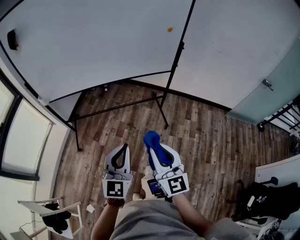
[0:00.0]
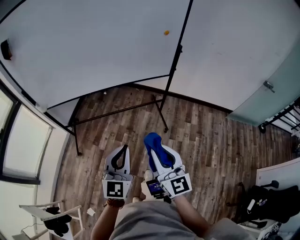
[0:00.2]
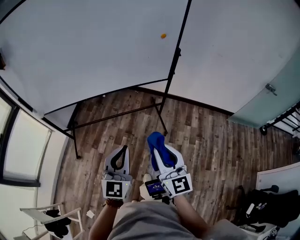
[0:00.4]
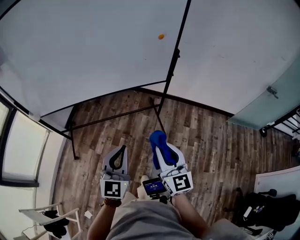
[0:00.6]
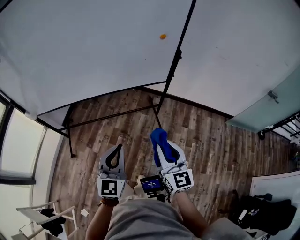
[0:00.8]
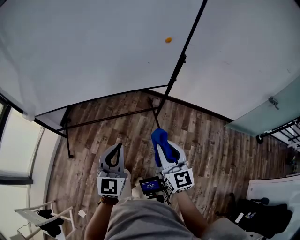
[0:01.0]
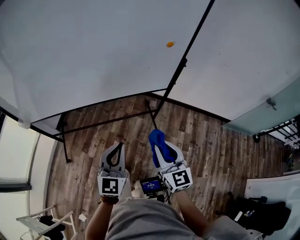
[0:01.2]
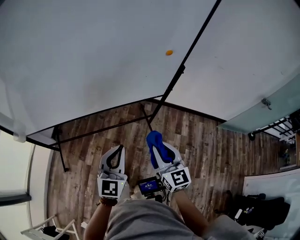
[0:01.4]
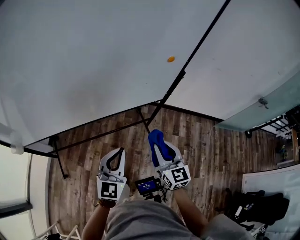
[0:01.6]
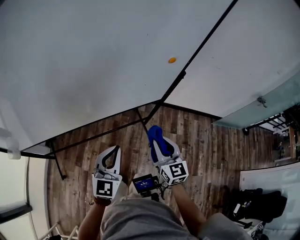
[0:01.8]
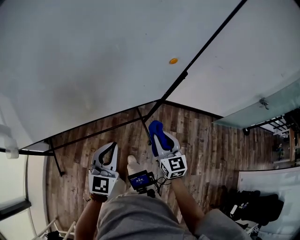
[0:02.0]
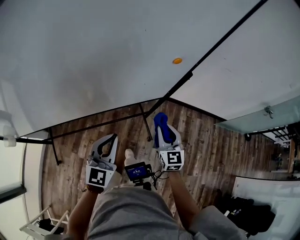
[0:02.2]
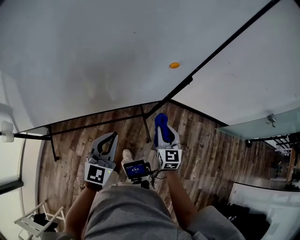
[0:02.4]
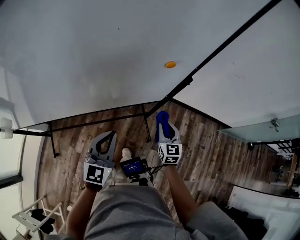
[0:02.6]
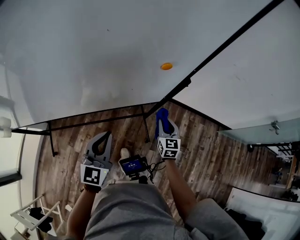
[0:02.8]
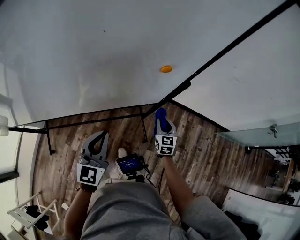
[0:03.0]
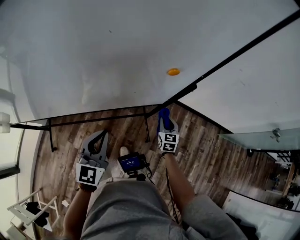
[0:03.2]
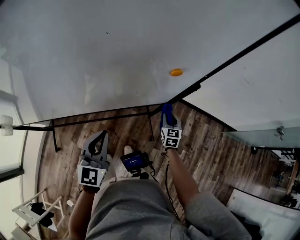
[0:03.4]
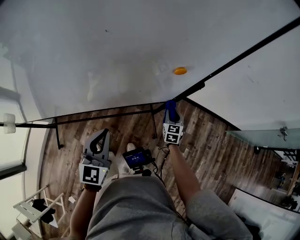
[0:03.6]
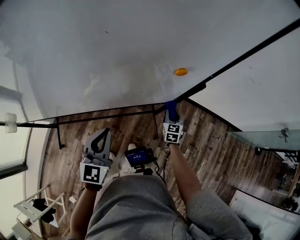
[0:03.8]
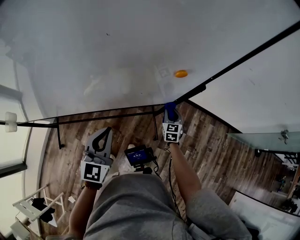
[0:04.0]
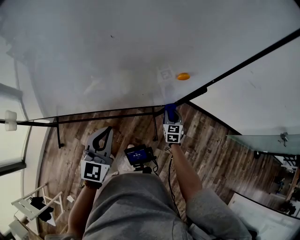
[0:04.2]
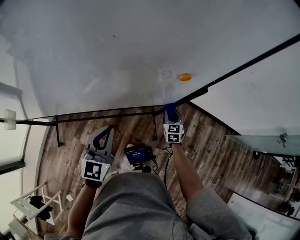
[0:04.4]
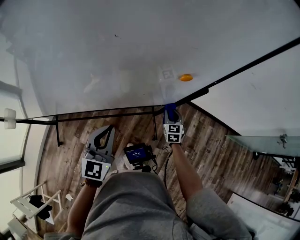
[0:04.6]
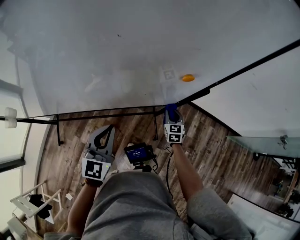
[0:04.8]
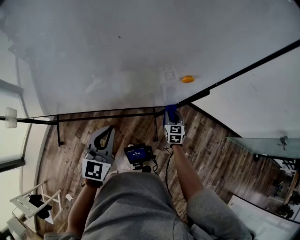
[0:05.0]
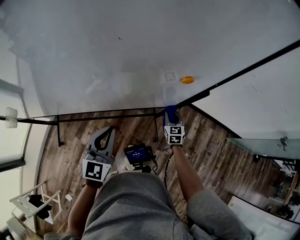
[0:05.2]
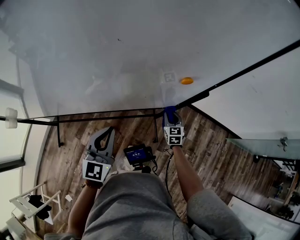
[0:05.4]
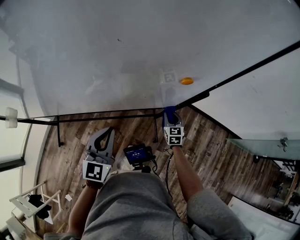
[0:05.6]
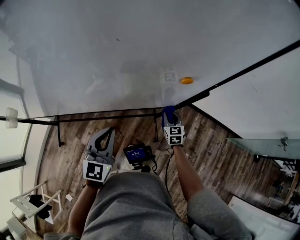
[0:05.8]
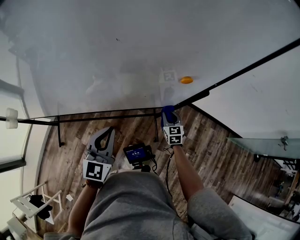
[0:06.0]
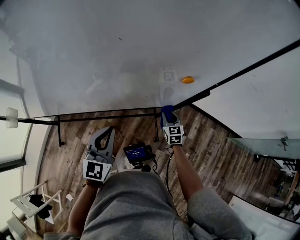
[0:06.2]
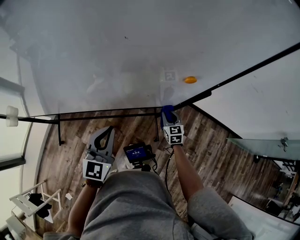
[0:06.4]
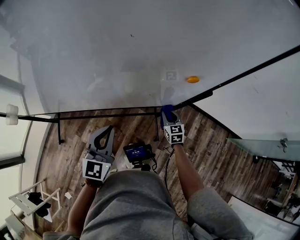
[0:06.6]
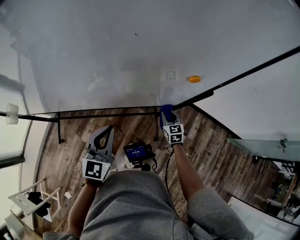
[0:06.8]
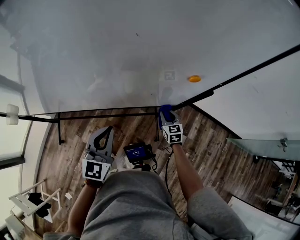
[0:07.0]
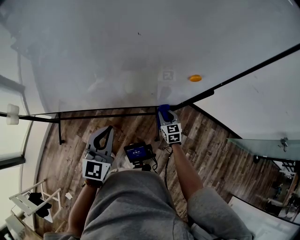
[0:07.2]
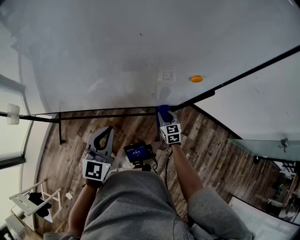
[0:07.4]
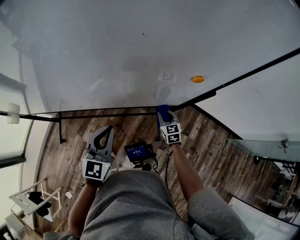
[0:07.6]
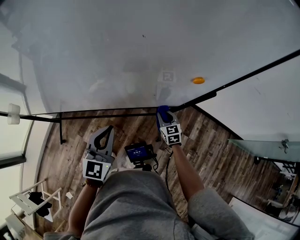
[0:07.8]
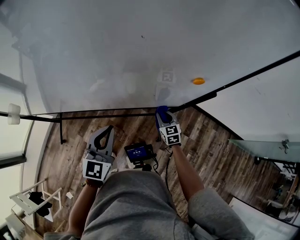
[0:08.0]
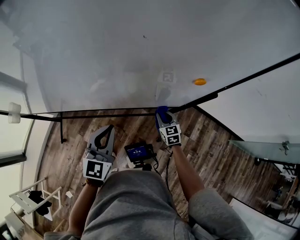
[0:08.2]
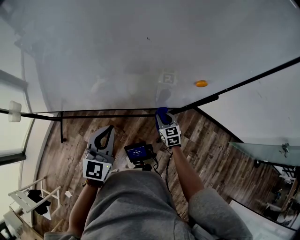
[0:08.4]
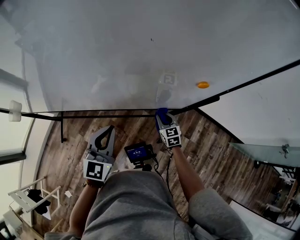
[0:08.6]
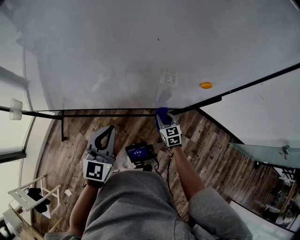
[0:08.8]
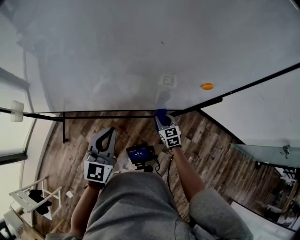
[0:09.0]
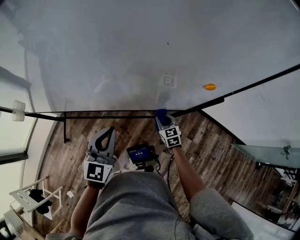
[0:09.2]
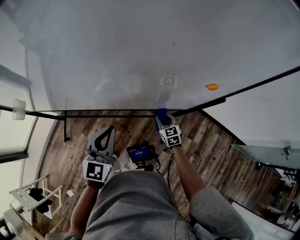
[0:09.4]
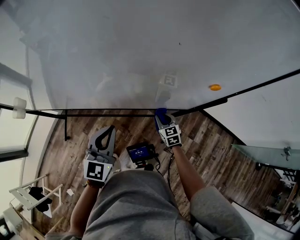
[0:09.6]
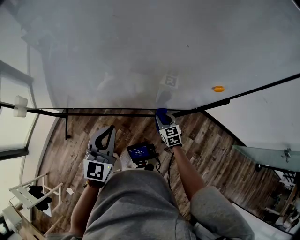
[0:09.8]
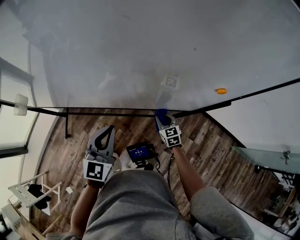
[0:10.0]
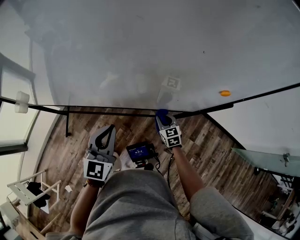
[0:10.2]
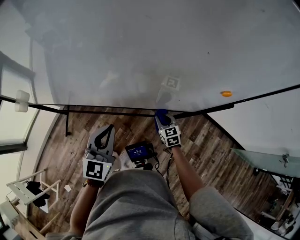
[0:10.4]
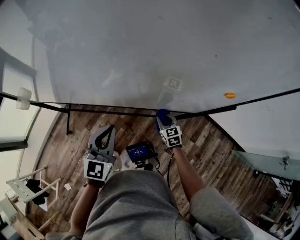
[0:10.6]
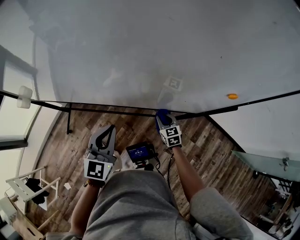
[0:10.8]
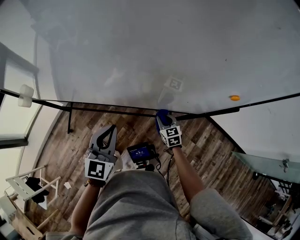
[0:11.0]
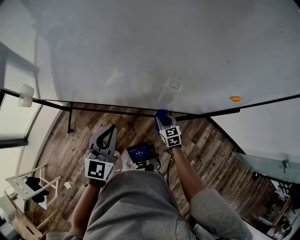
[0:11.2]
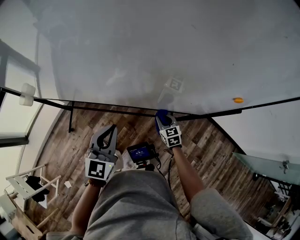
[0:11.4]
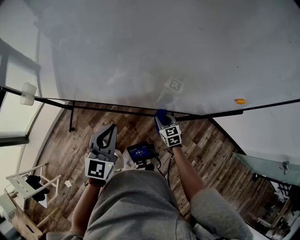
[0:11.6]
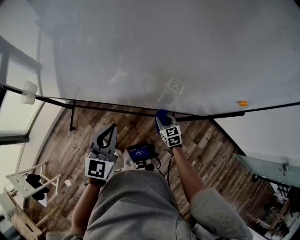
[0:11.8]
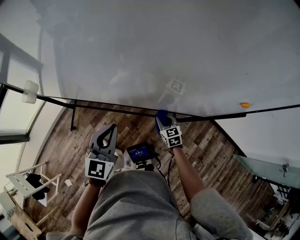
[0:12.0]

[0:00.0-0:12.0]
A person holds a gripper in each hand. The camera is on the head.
0:00.0 to 0:01.6: The grippers both shift forward by about 35 cm.
0:01.6 to 0:03.0: The right gripper goes some 40 cm forward, downward and to the right; the left gripper travels forward by roughly 15 cm.
0:03.0 to 0:04.4: The right gripper moves forward and downward, approximately 10 cm.
0:04.4 to 0:06.0: The grippers make only small movements.
0:06.0 to 0:07.6: The right gripper goes approximately 5 cm to the left.
0:07.6 to 0:09.0: The grippers stay close to where they were, moving slightly.
0:09.0 to 0:10.4: The grippers both shift to the left by roughly 5 cm.
0:10.4 to 0:12.0: Both grippers move to the left, roughly 5 cm.

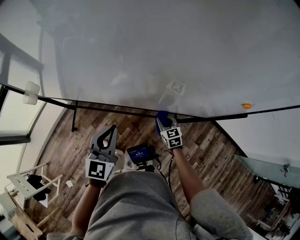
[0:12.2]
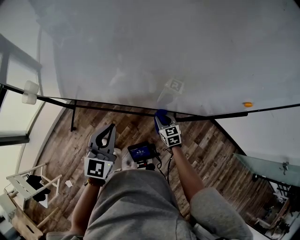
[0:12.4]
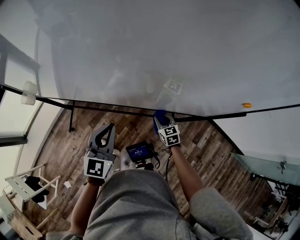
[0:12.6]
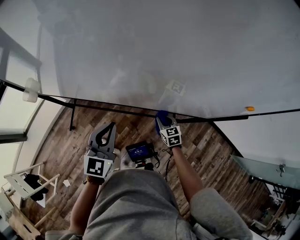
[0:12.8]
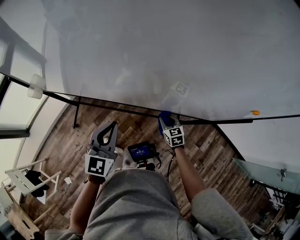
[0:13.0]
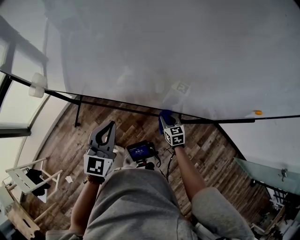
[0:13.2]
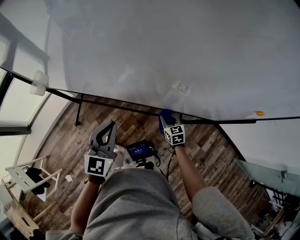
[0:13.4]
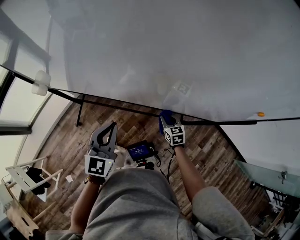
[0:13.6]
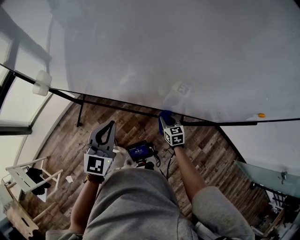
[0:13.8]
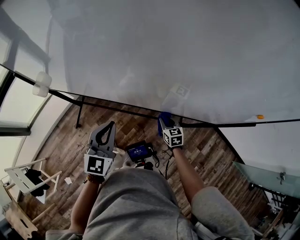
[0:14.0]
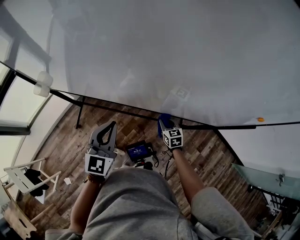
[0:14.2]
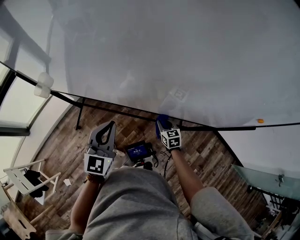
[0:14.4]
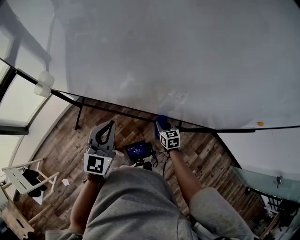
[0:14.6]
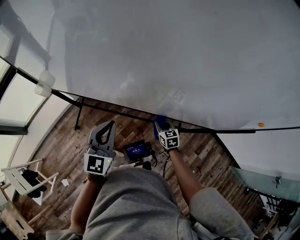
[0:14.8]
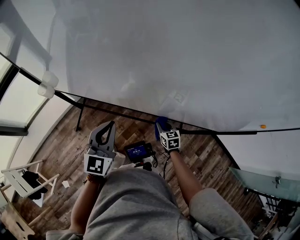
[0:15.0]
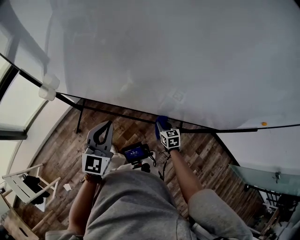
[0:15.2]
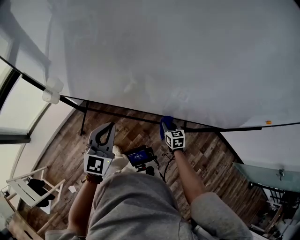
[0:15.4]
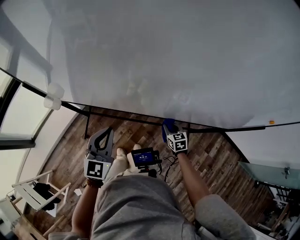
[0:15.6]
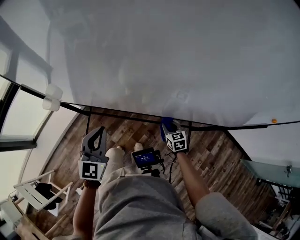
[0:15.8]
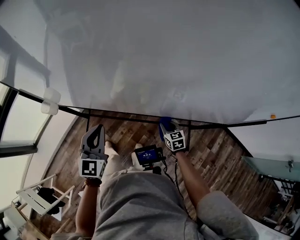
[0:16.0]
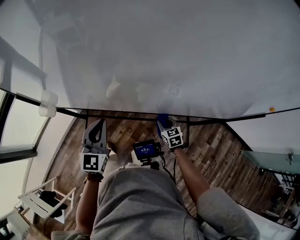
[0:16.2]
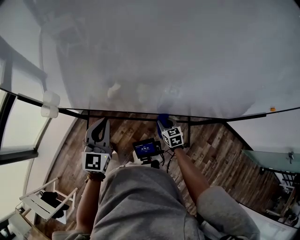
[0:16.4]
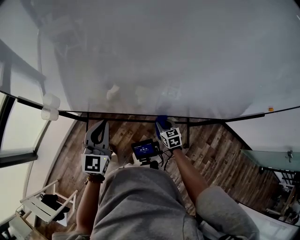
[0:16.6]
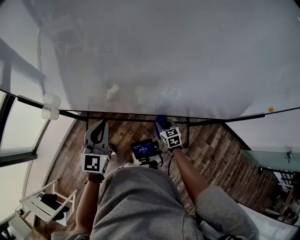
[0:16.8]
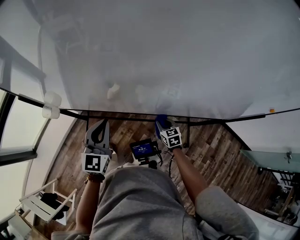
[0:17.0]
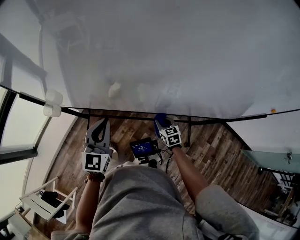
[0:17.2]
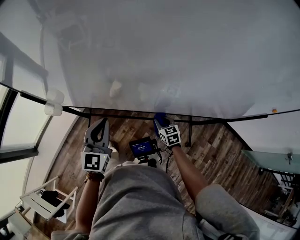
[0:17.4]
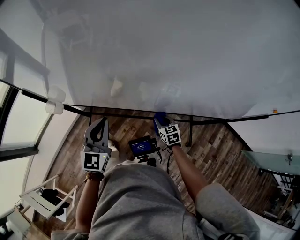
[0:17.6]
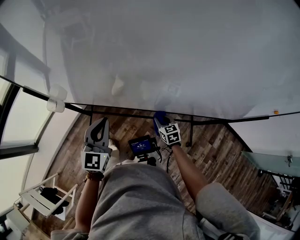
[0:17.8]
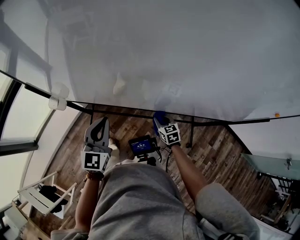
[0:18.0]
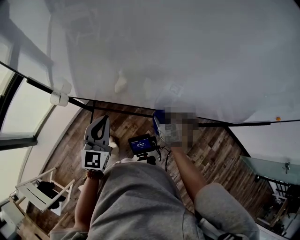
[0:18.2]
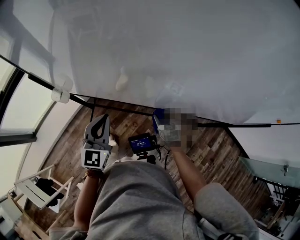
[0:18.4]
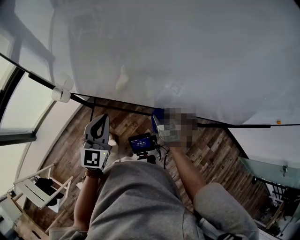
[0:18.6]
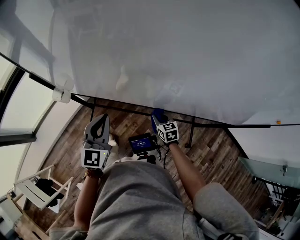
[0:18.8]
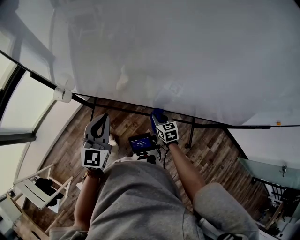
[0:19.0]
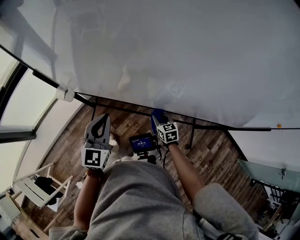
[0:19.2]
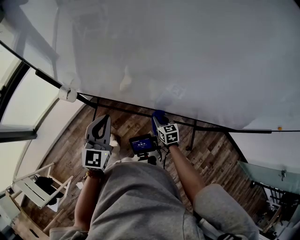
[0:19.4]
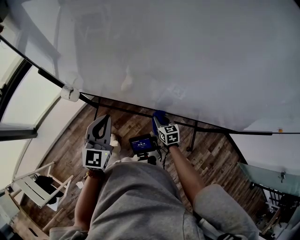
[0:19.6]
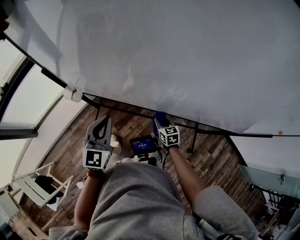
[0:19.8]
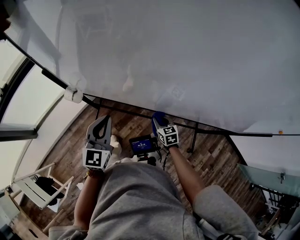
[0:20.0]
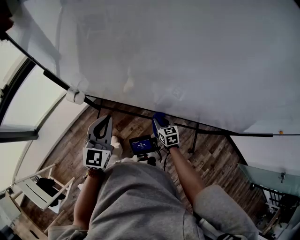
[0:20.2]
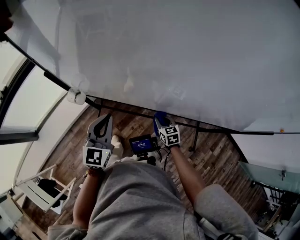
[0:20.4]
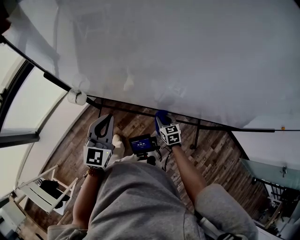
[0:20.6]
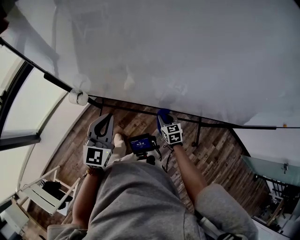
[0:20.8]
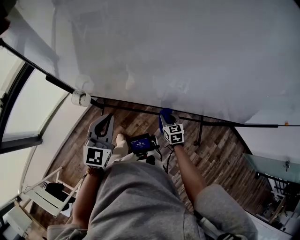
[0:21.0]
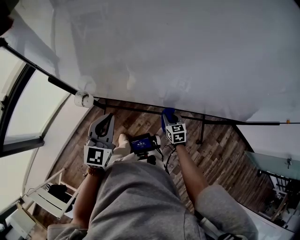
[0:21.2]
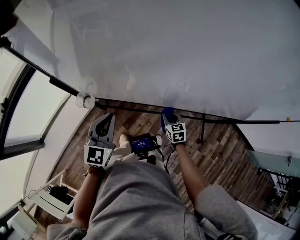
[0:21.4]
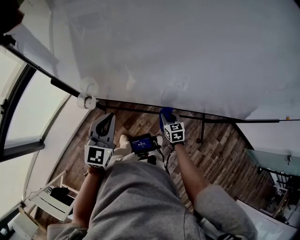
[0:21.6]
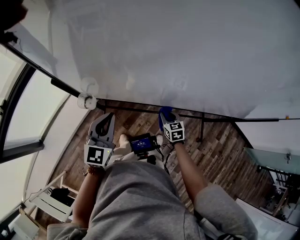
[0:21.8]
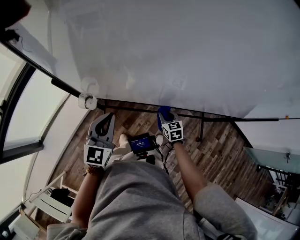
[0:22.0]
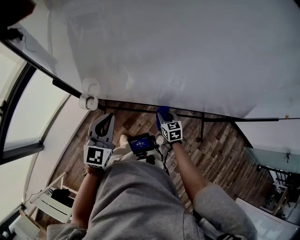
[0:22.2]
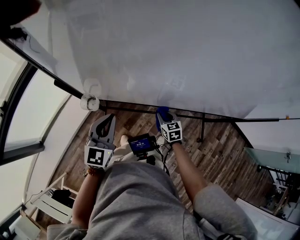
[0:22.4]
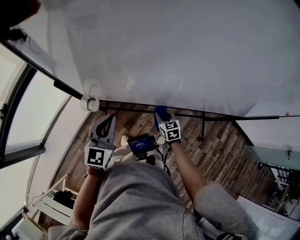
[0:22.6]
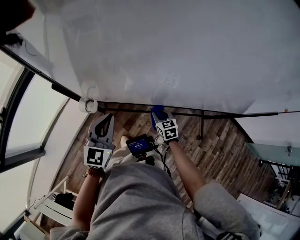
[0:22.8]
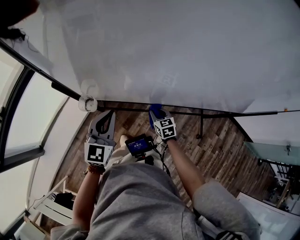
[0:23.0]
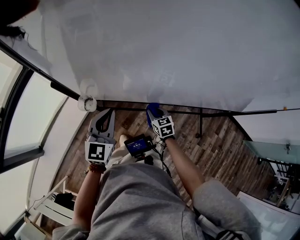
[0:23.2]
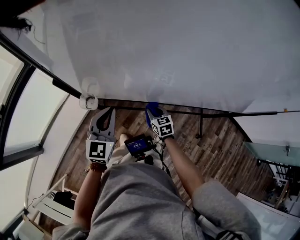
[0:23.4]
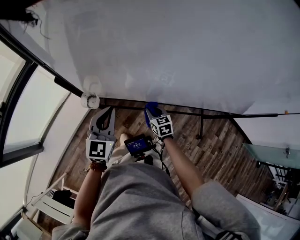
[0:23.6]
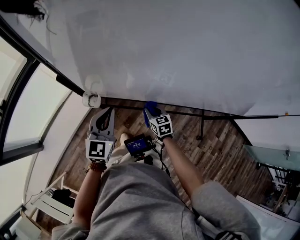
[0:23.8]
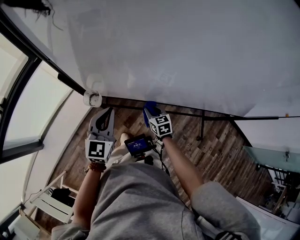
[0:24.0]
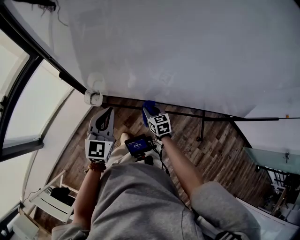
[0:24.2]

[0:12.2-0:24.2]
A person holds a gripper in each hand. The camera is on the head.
0:12.2 to 0:13.8: The grippers both shift to the left by about 10 cm.
0:13.8 to 0:15.2: Both grippers move to the left, about 10 cm.
0:15.2 to 0:16.6: The left gripper is displaced forward by approximately 5 cm.
0:16.6 to 0:18.2: Both grippers travel together to the left, approximately 5 cm.
0:18.2 to 0:19.8: The two grippers go approximately 10 cm to the left.
0:19.8 to 0:21.2: The left gripper travels to the left by approximately 5 cm.
0:21.2 to 0:22.6: The right gripper heads to the left, covering about 10 cm.
0:22.6 to 0:24.2: The right gripper is displaced to the left by roughly 10 cm.
